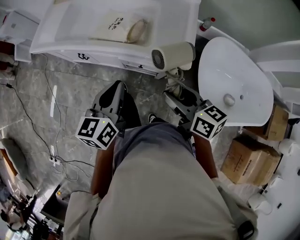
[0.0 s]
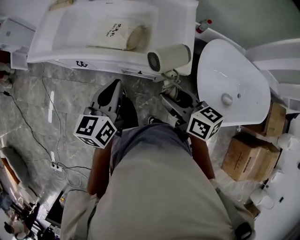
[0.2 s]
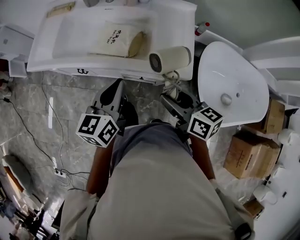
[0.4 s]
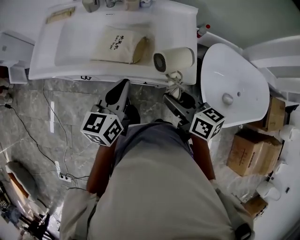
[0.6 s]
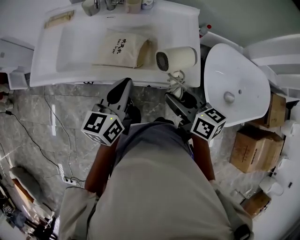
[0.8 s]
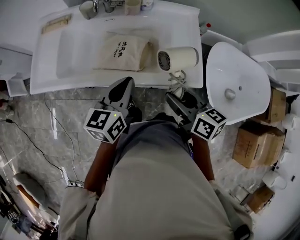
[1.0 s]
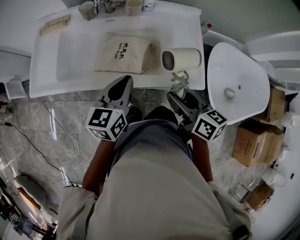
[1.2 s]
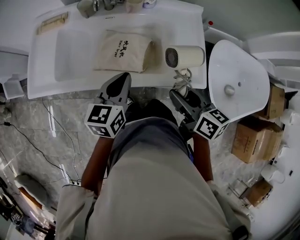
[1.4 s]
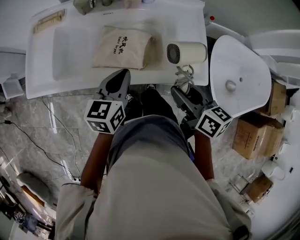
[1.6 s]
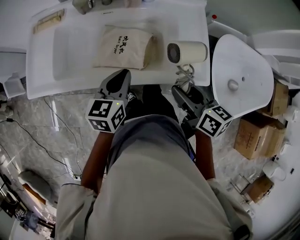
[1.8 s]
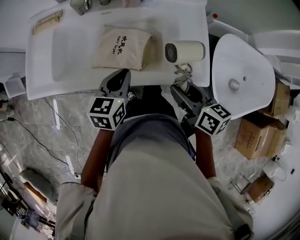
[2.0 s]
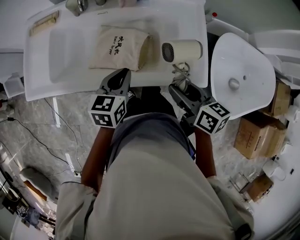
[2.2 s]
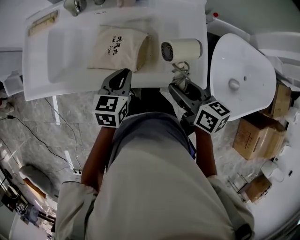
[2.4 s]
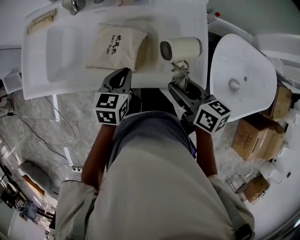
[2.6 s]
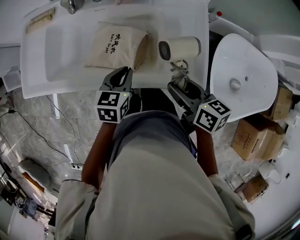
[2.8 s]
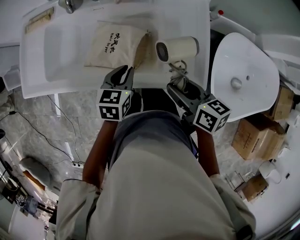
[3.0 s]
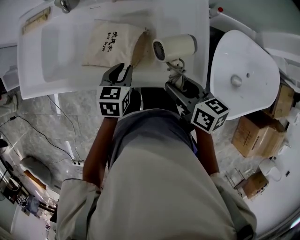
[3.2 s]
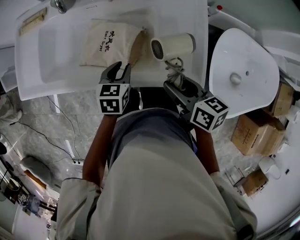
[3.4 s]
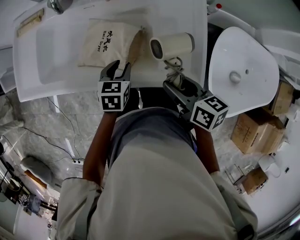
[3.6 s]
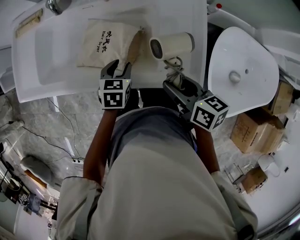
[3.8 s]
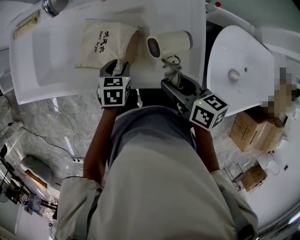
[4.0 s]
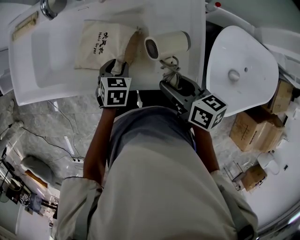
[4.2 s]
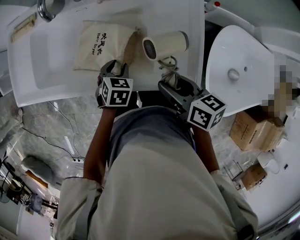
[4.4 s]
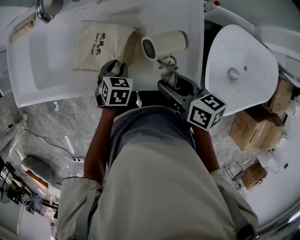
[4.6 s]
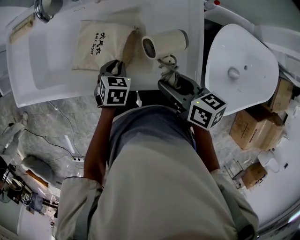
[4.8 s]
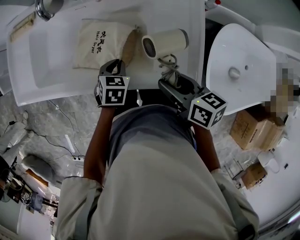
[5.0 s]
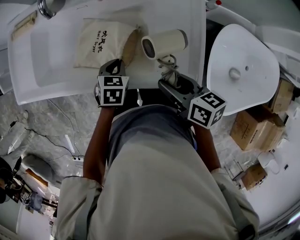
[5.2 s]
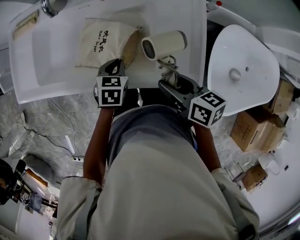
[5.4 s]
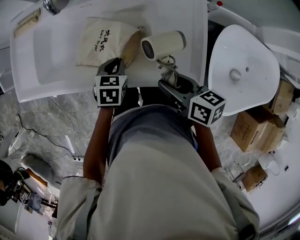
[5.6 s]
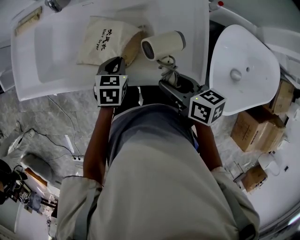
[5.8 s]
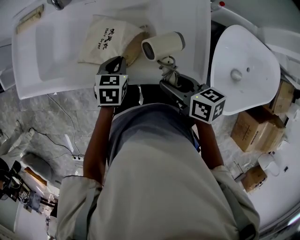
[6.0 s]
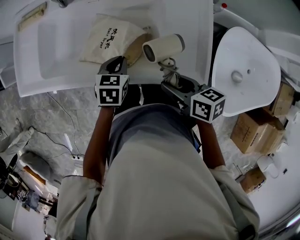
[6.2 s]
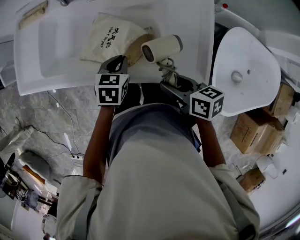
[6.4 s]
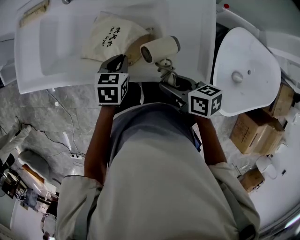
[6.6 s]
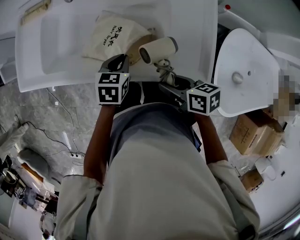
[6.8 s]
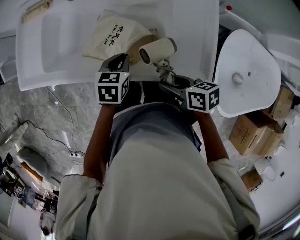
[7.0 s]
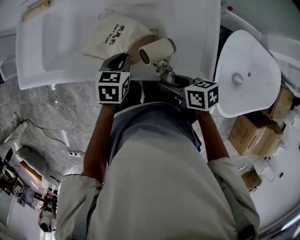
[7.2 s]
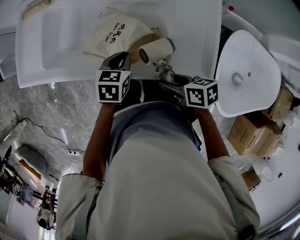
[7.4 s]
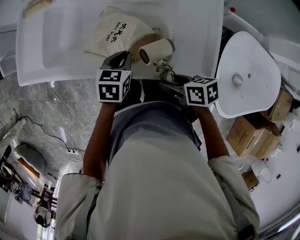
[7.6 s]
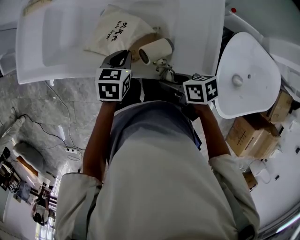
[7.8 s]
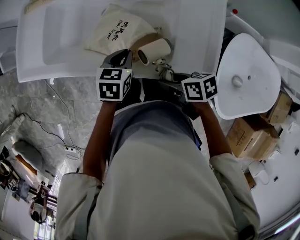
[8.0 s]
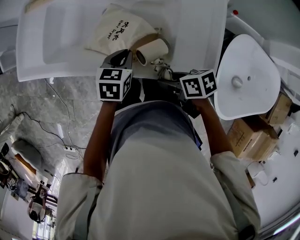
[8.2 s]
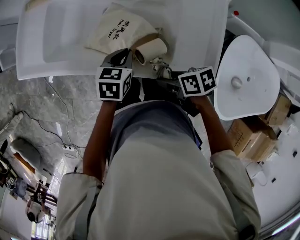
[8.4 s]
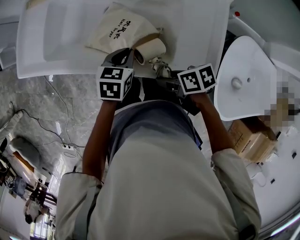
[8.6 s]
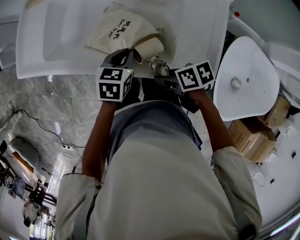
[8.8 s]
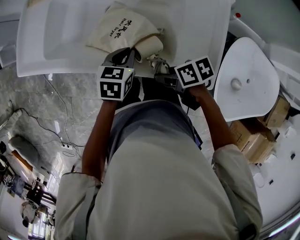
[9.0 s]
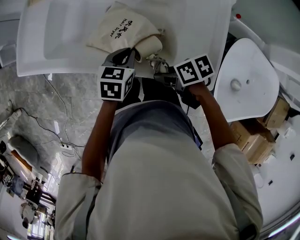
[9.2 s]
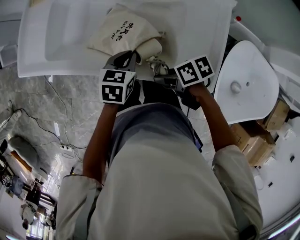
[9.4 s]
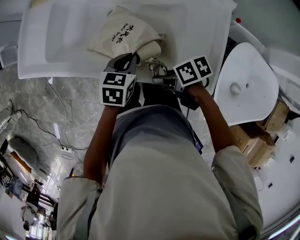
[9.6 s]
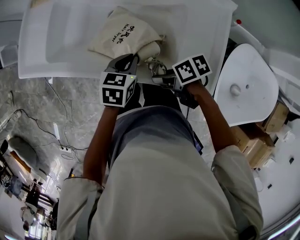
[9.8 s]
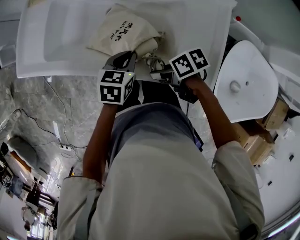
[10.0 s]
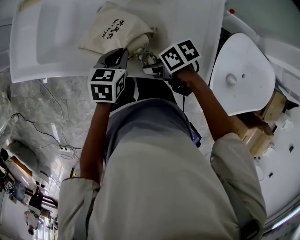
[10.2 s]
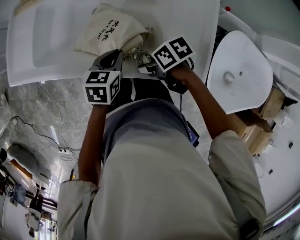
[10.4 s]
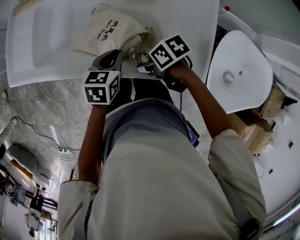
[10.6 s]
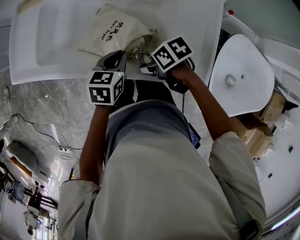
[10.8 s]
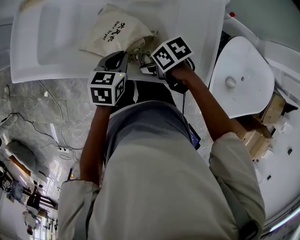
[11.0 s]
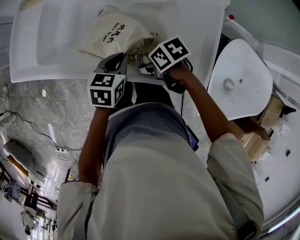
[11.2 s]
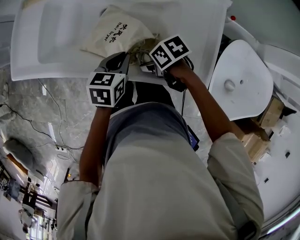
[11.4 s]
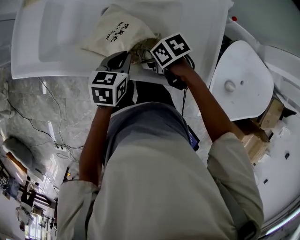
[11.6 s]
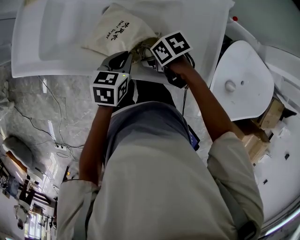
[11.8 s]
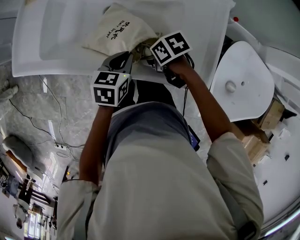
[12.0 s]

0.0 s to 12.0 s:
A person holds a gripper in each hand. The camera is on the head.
0.0 to 1.6 s: The left gripper goes approximately 20 cm forward, and changes its angle by some 20 degrees. The right gripper goes some 20 cm forward and to the left, and turns by about 20 degrees.
1.6 to 3.0 s: The right gripper is displaced downward by roughly 5 cm, while the left gripper moves downward and to the right, some 10 cm.
3.0 to 4.4 s: The left gripper heads downward, covering about 10 cm, rotates approximately 20 degrees, and opens its fingers.
4.4 to 6.0 s: The left gripper closes up.
6.0 to 7.6 s: The right gripper moves downward, about 5 cm.
7.6 to 9.0 s: The grippers make only small movements.
9.0 to 10.4 s: There are only small adjustments of the grippers.
10.4 to 12.0 s: There are only small adjustments of the grippers.

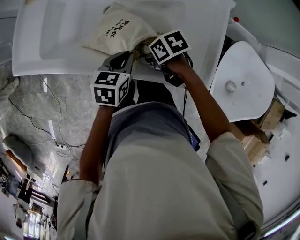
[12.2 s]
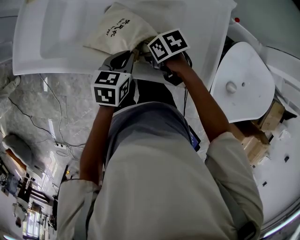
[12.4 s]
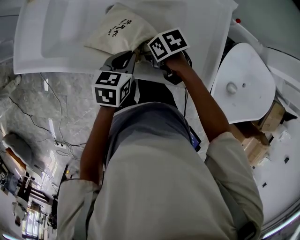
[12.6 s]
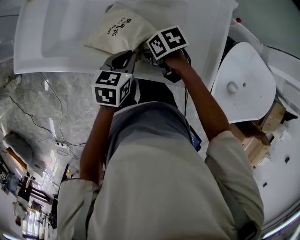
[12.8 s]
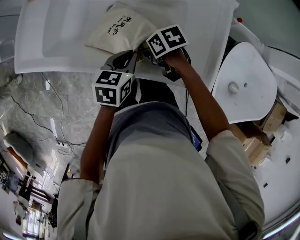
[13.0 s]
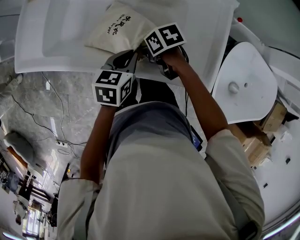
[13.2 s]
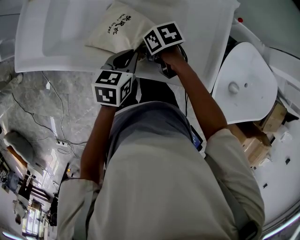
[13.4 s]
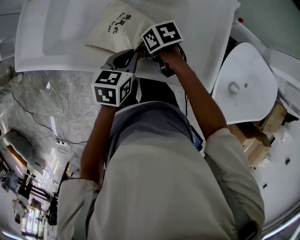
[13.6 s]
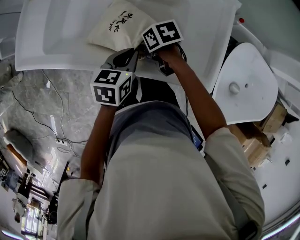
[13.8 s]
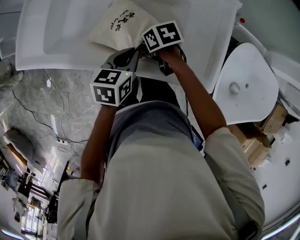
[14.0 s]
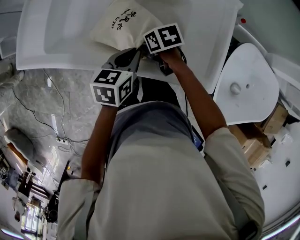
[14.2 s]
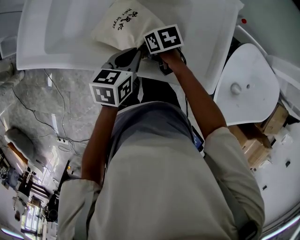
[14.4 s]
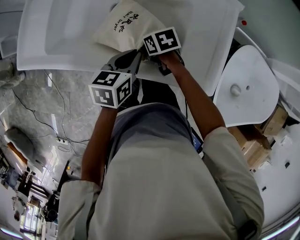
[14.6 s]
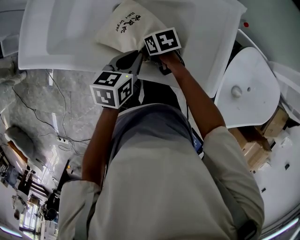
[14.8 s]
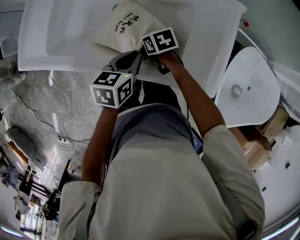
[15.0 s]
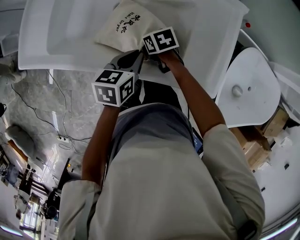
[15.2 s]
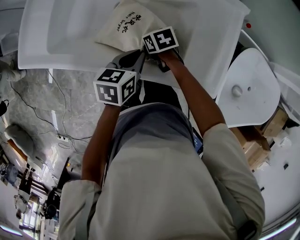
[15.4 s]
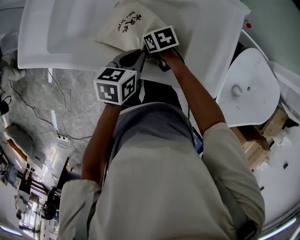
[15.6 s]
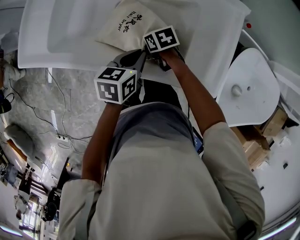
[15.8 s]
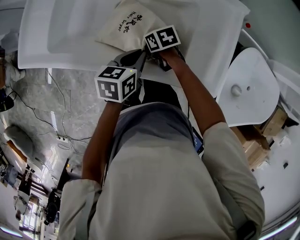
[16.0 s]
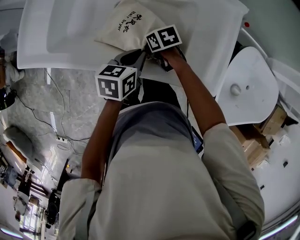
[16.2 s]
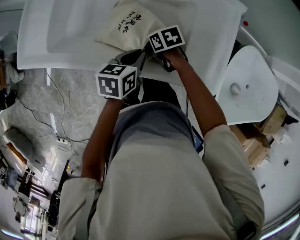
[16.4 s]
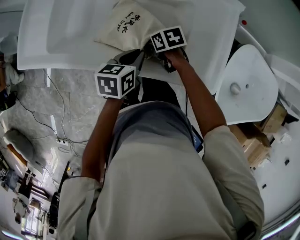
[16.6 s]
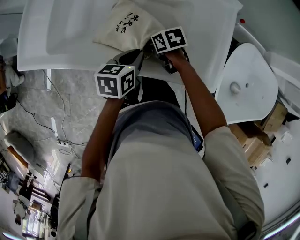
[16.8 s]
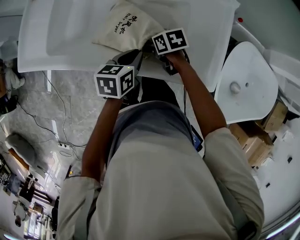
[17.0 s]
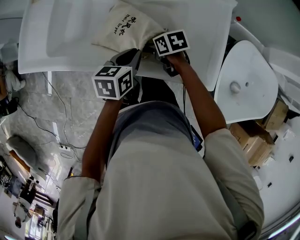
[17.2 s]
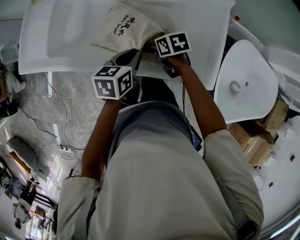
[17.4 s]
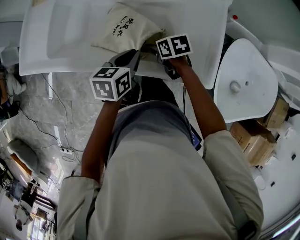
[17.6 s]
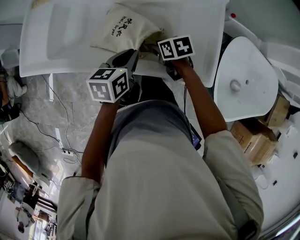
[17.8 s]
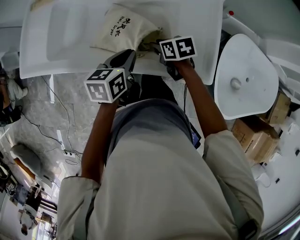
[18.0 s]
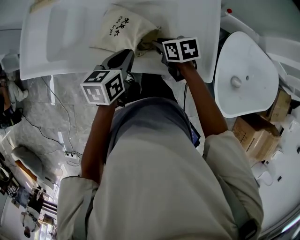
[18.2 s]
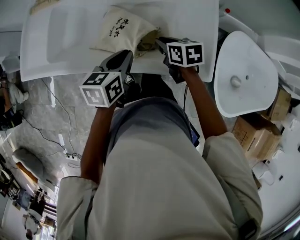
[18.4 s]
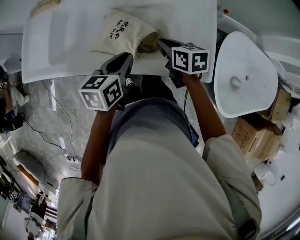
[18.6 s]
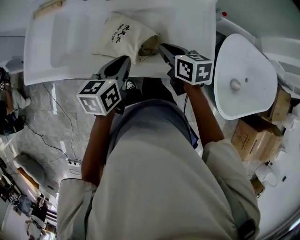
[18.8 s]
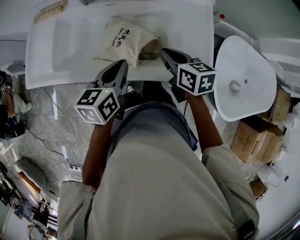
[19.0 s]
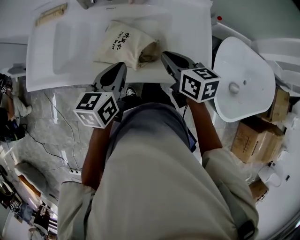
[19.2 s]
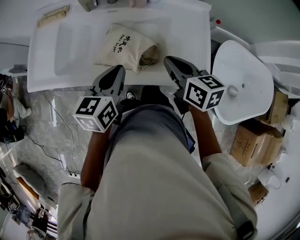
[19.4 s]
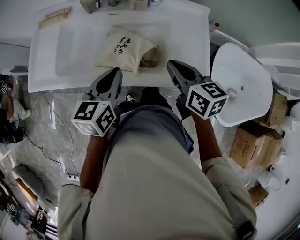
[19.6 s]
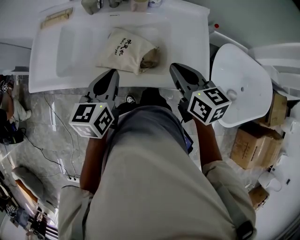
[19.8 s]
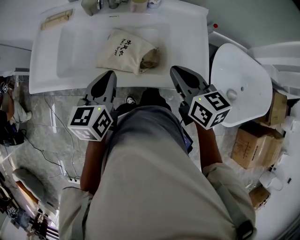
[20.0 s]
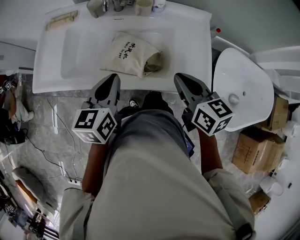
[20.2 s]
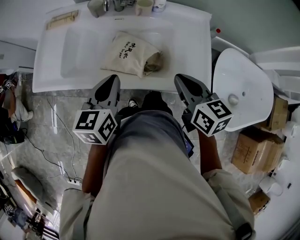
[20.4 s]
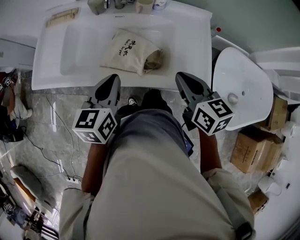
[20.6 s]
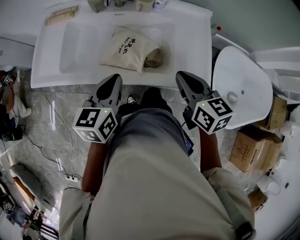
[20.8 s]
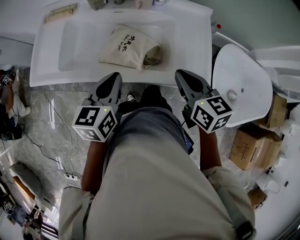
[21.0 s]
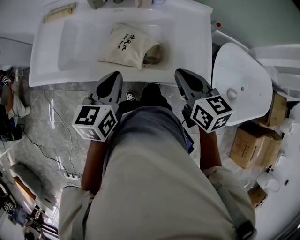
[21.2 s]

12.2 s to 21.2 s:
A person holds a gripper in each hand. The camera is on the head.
12.2 to 13.8 s: The grippers make only small movements.
13.8 to 15.2 s: The right gripper shifts by some 5 cm.
15.2 to 16.6 s: The grippers make only small movements.
16.6 to 18.2 s: The right gripper travels upward and to the right by roughly 10 cm, and closes its fingers. Meanwhile the left gripper travels upward by roughly 5 cm.
18.2 to 19.8 s: The left gripper is displaced upward and to the left by approximately 15 cm, while the right gripper travels upward by approximately 20 cm, and swivels approximately 30 degrees.
19.8 to 21.2 s: There are only small adjustments of the grippers.

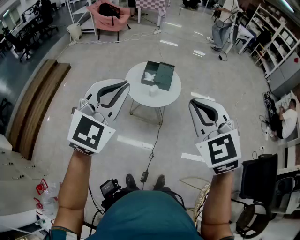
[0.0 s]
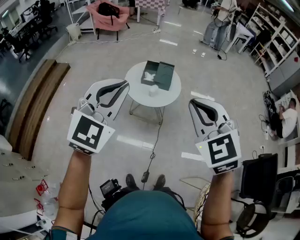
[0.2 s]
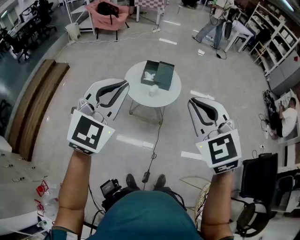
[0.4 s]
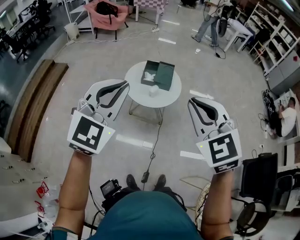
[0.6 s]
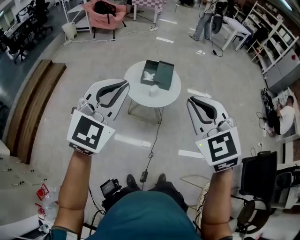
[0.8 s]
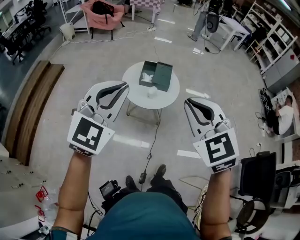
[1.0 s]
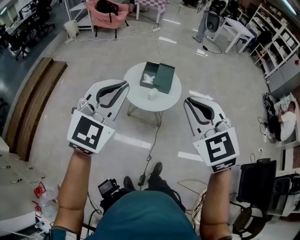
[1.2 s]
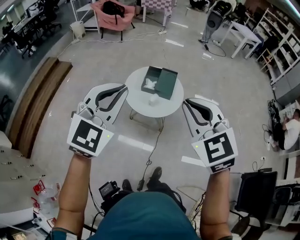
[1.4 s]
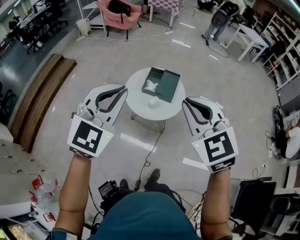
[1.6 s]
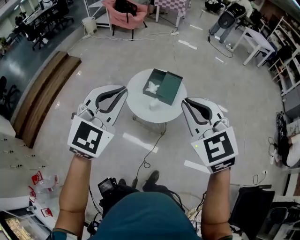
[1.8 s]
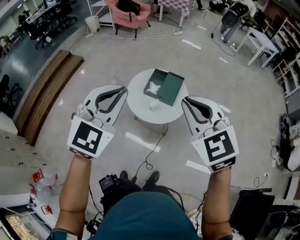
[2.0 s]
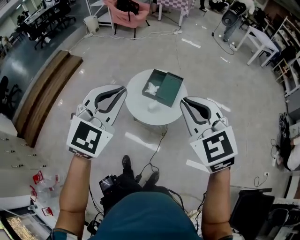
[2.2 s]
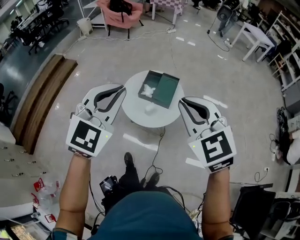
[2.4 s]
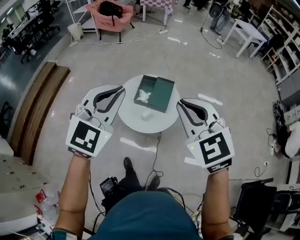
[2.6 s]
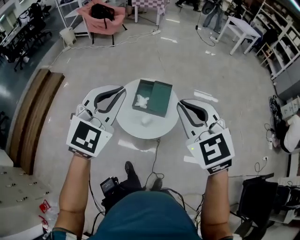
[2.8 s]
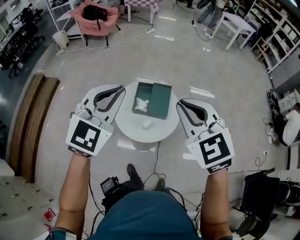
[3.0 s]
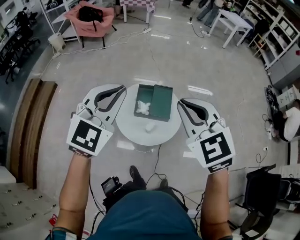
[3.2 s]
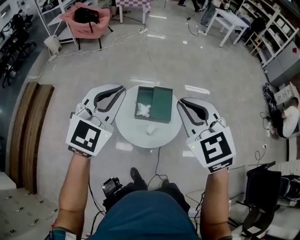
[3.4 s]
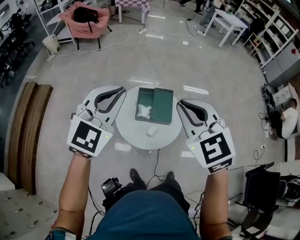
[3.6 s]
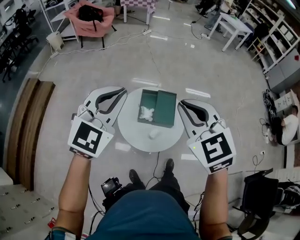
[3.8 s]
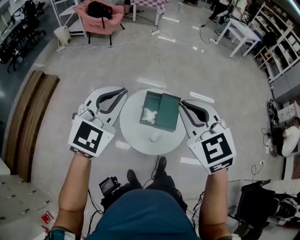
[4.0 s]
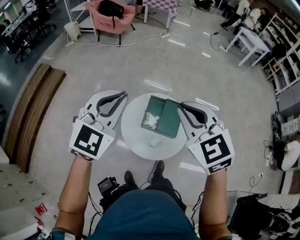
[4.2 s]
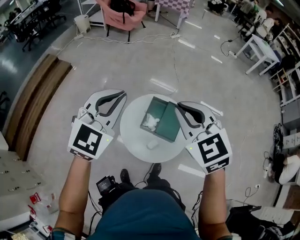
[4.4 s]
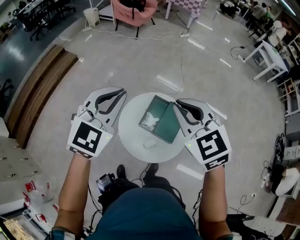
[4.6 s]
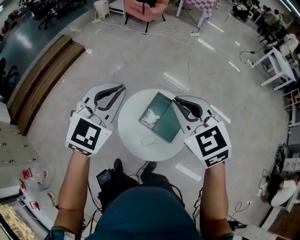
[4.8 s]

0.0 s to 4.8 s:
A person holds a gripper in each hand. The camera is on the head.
0.0 to 1.6 s: The two grippers go approximately 20 cm forward.
1.6 to 3.2 s: The grippers both shift forward by approximately 30 cm.
3.2 to 4.8 s: The left gripper changes place by approximately 20 cm, and turns by about 30 degrees, while the right gripper moves approximately 25 cm, and swivels approximately 30 degrees.
